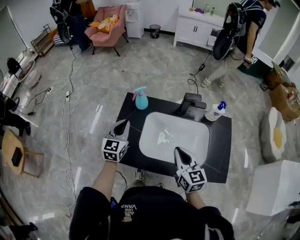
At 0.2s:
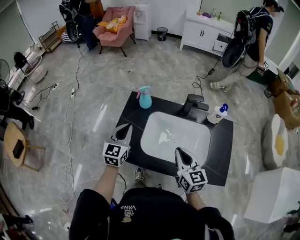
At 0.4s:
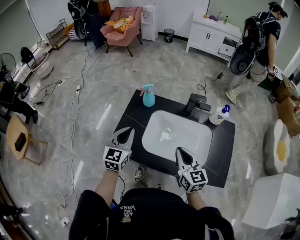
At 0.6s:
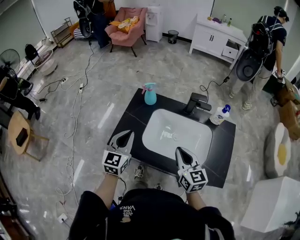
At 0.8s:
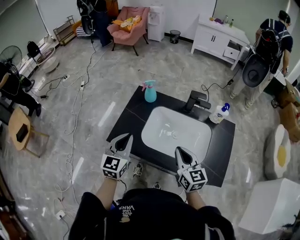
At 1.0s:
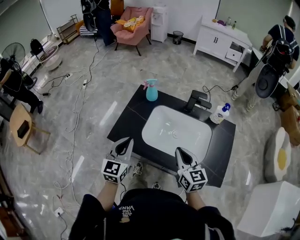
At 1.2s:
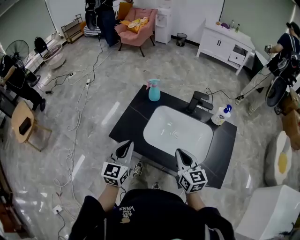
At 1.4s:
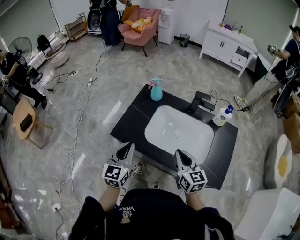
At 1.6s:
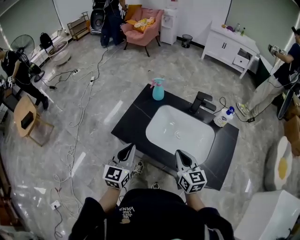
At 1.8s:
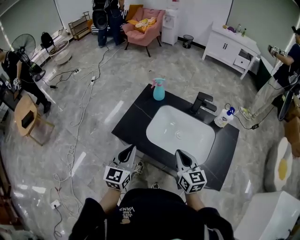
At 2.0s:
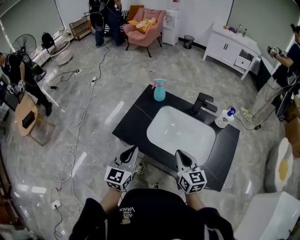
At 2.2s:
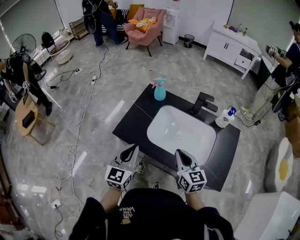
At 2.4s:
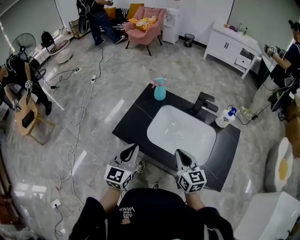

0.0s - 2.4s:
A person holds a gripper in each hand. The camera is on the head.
0.0s - 1.2s: The left gripper goes about 20 cm backward. The right gripper heads backward, covering some 5 cm.
1.2s - 2.4s: The grippers make only small movements.

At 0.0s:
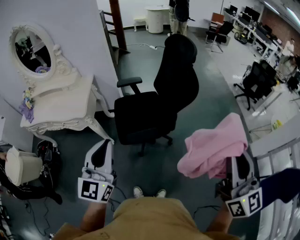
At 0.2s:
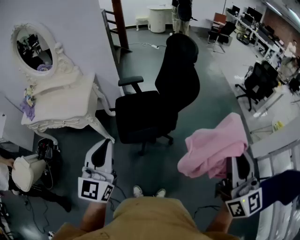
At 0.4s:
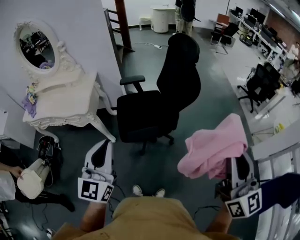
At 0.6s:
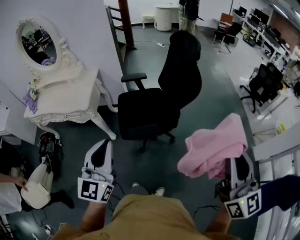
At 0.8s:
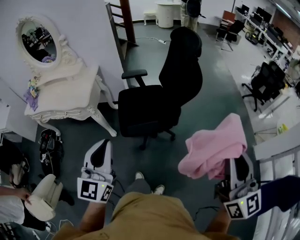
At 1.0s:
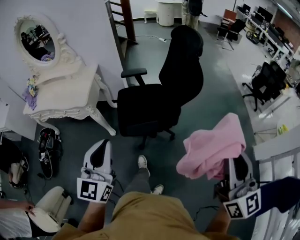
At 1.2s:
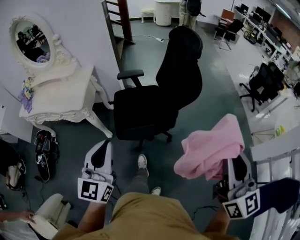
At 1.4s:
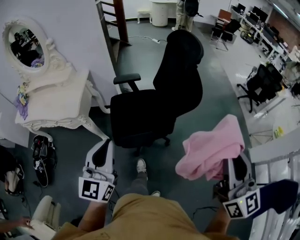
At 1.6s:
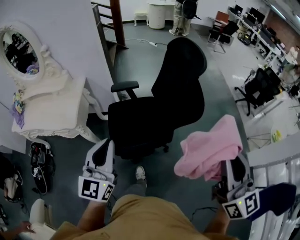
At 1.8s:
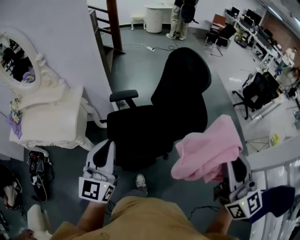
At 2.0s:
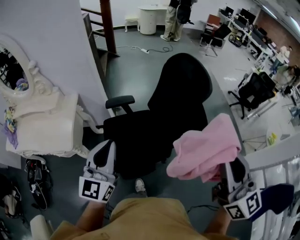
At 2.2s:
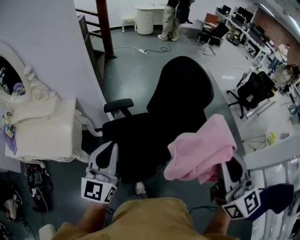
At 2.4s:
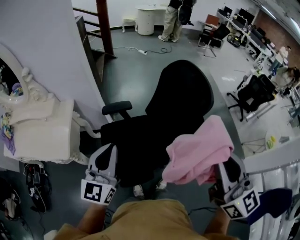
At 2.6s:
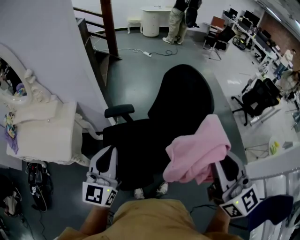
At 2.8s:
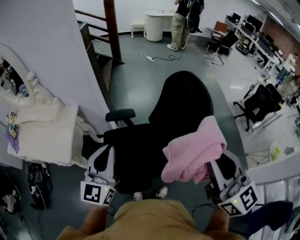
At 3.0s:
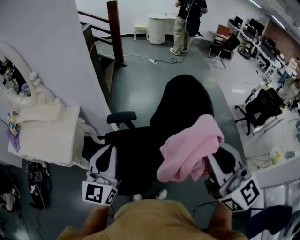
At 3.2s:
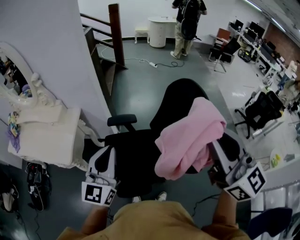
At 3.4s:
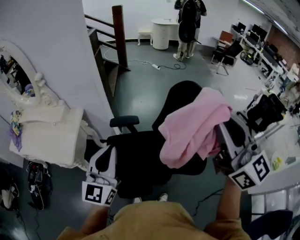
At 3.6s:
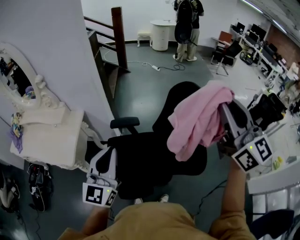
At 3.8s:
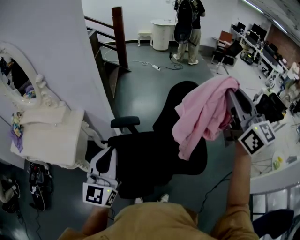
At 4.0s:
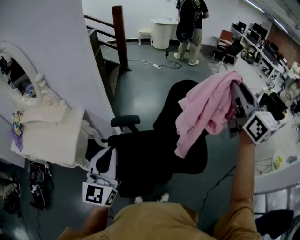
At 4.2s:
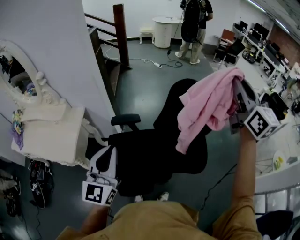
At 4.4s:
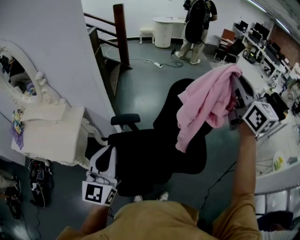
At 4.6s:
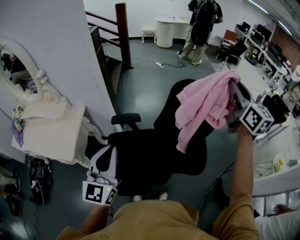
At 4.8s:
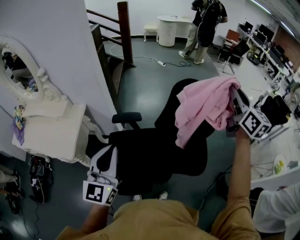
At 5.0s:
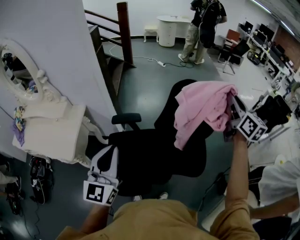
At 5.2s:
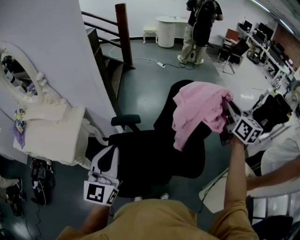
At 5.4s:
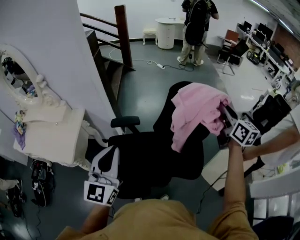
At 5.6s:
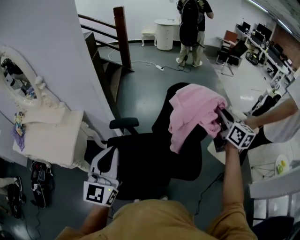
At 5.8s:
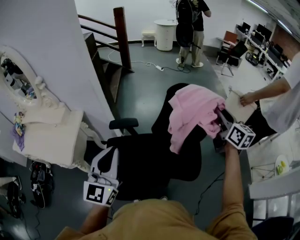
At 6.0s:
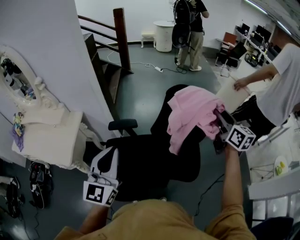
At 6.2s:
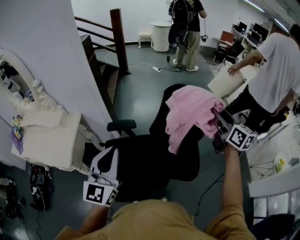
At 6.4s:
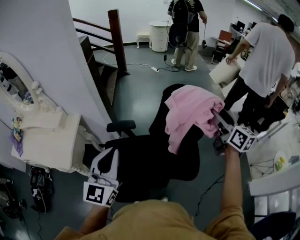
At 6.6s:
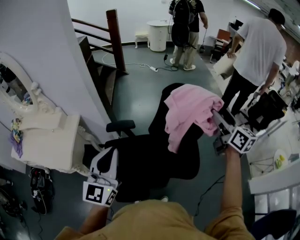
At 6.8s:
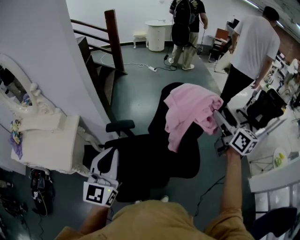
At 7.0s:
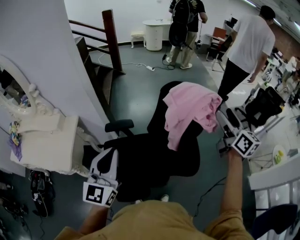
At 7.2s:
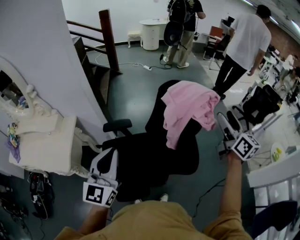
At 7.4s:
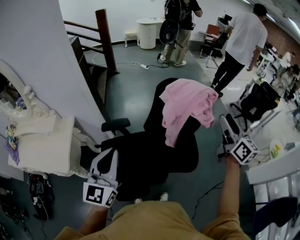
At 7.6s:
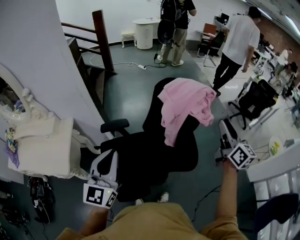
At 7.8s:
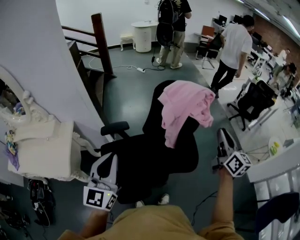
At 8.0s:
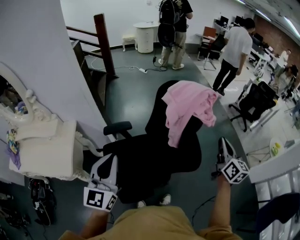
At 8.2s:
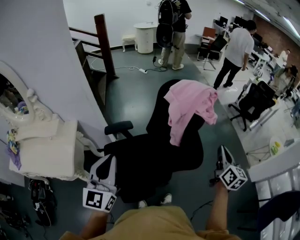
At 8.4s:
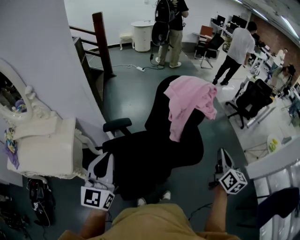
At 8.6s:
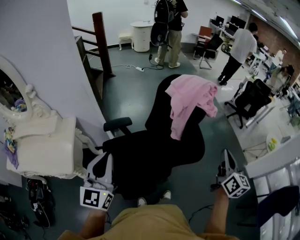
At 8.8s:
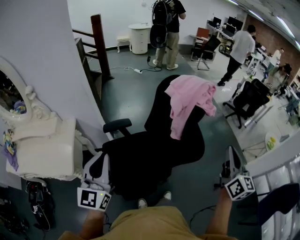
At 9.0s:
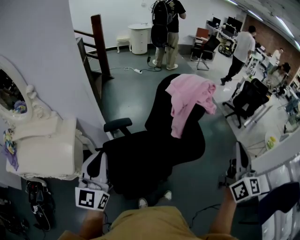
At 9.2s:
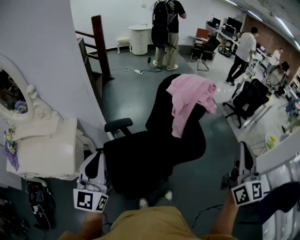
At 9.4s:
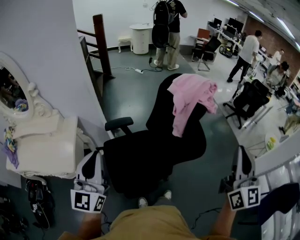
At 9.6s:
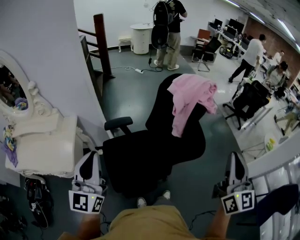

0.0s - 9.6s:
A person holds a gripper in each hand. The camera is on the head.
0.0s - 1.6s: The grippers both shift forward by some 20 cm.
1.6s - 3.2s: The grippers both shift forward by approximately 25 cm. The right gripper turns by some 20 degrees.
3.2s - 4.8s: The right gripper is displaced forward and to the right by about 25 cm, and changes its angle by roughly 20 degrees.
4.8s - 6.4s: The left gripper goes roughly 5 cm to the right; the right gripper shifts some 10 cm downward, and opens its fingers.
6.4s - 8.0s: The right gripper is displaced backward and downward by approximately 20 cm, swivels approximately 20 degrees, and closes up; the left gripper shifts by approximately 5 cm.
8.0s - 9.6s: The left gripper shifts some 15 cm to the left and backward, while the right gripper moves backward, upward and to the left, roughly 25 cm, and changes its angle by some 30 degrees.

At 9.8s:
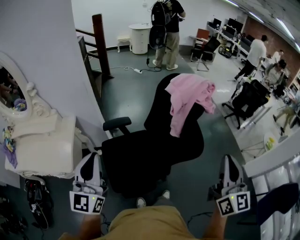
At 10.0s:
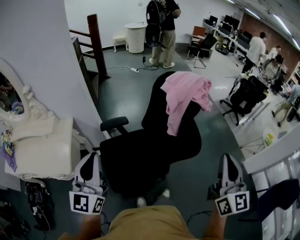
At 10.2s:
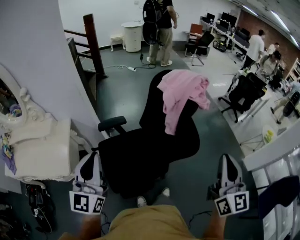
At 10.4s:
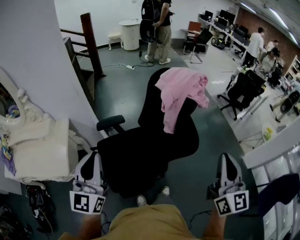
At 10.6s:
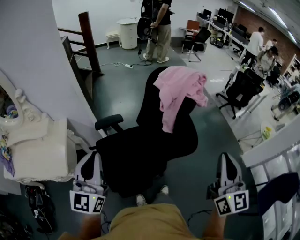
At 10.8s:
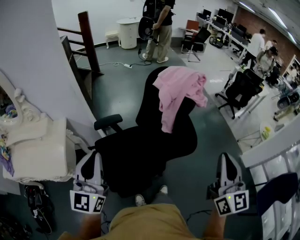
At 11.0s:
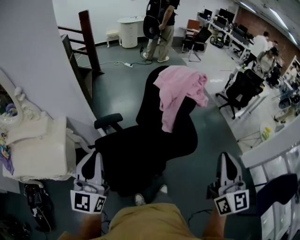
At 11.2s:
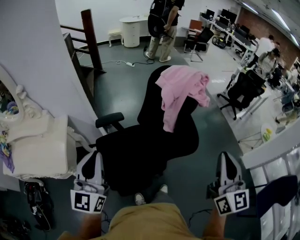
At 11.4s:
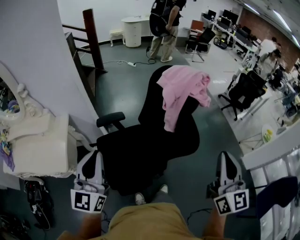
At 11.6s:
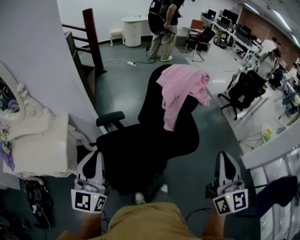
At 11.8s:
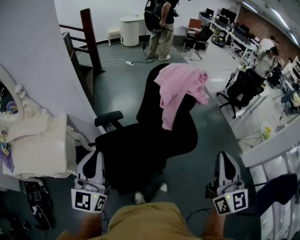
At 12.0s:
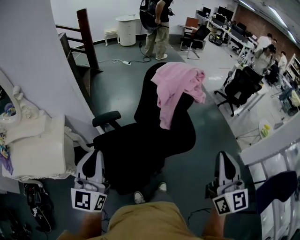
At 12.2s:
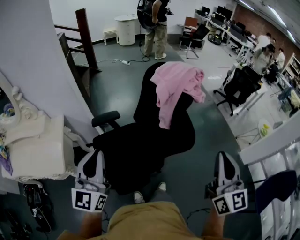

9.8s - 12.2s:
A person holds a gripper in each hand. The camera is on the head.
9.8s - 11.0s: The left gripper is displaced to the right by about 5 cm.
11.0s - 12.2s: The grippers make only small movements.

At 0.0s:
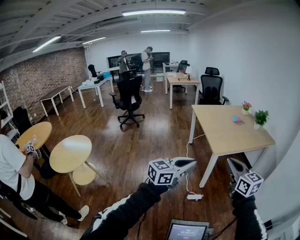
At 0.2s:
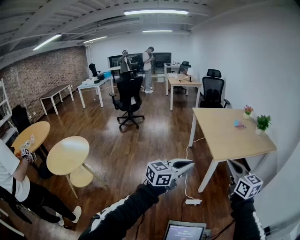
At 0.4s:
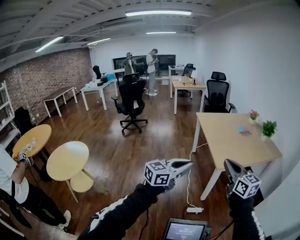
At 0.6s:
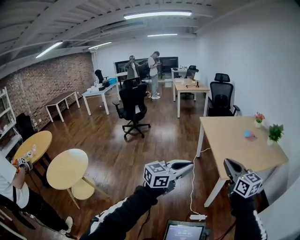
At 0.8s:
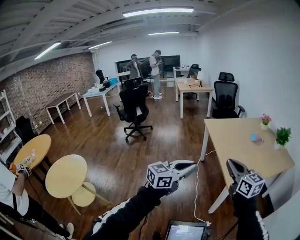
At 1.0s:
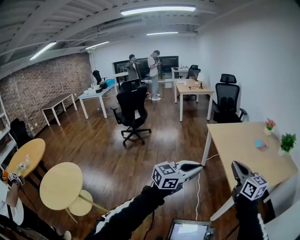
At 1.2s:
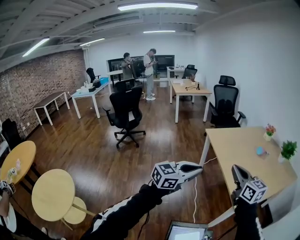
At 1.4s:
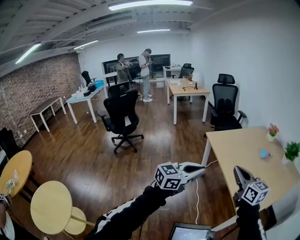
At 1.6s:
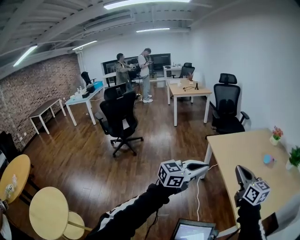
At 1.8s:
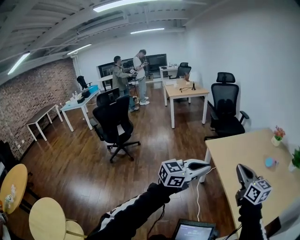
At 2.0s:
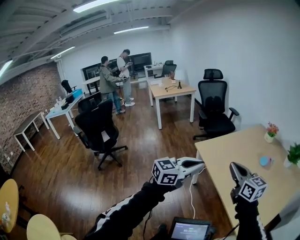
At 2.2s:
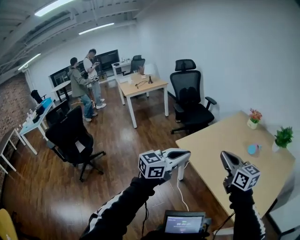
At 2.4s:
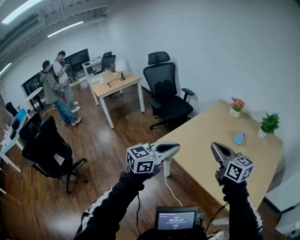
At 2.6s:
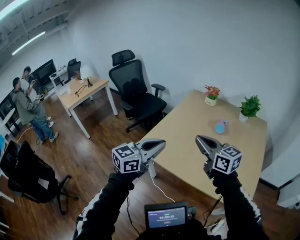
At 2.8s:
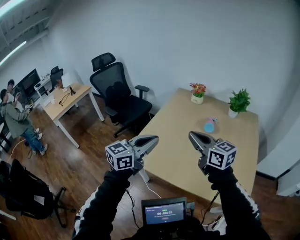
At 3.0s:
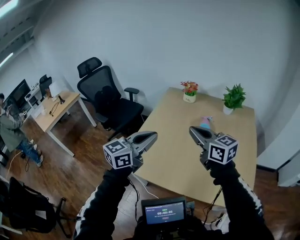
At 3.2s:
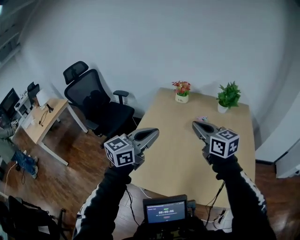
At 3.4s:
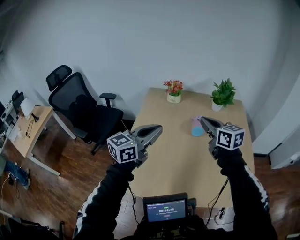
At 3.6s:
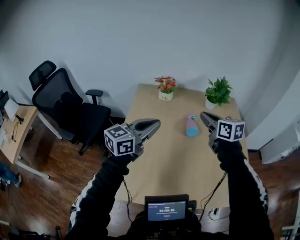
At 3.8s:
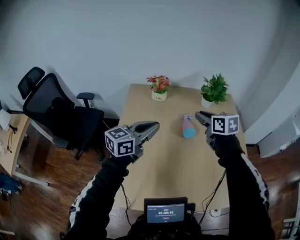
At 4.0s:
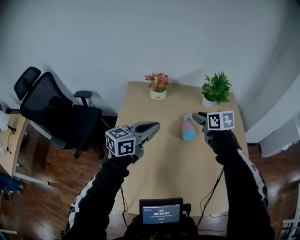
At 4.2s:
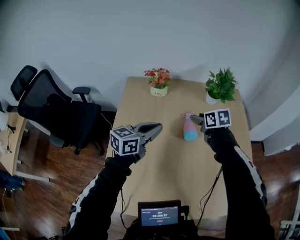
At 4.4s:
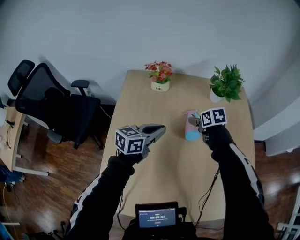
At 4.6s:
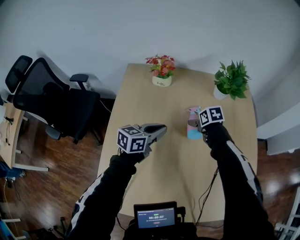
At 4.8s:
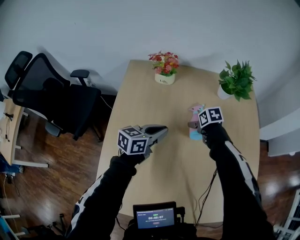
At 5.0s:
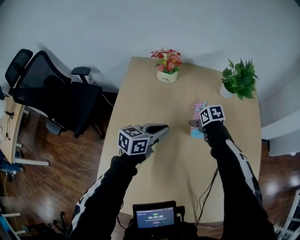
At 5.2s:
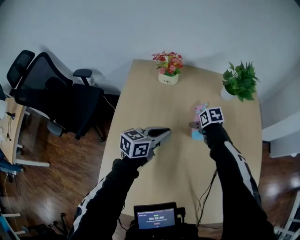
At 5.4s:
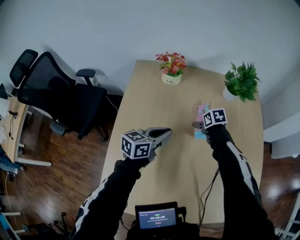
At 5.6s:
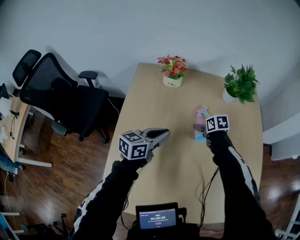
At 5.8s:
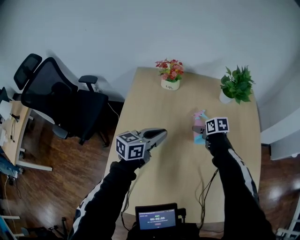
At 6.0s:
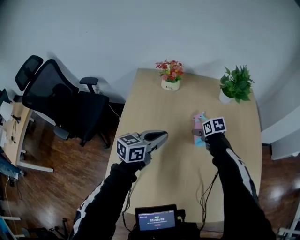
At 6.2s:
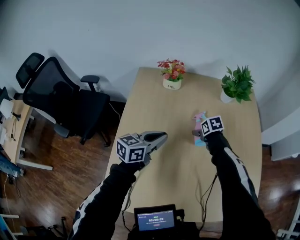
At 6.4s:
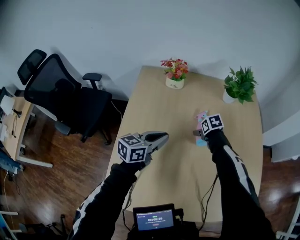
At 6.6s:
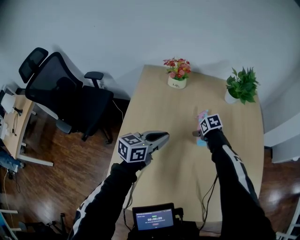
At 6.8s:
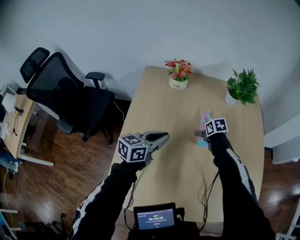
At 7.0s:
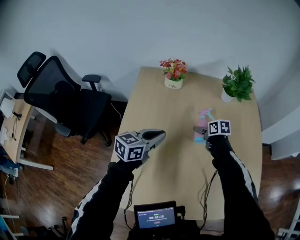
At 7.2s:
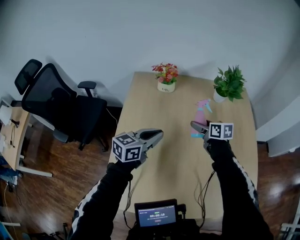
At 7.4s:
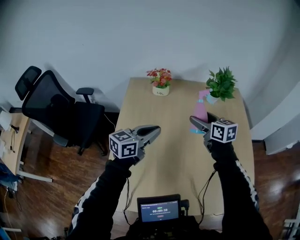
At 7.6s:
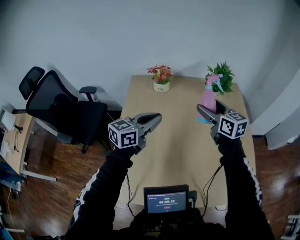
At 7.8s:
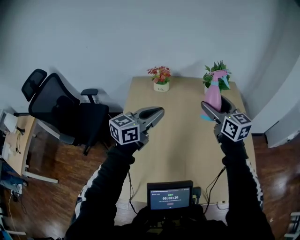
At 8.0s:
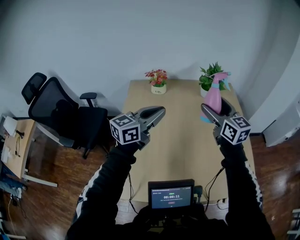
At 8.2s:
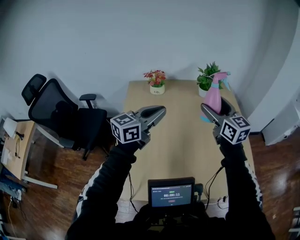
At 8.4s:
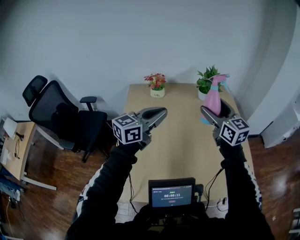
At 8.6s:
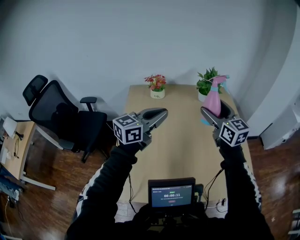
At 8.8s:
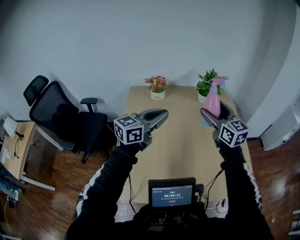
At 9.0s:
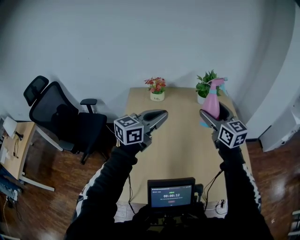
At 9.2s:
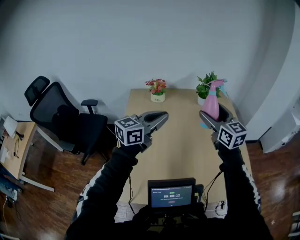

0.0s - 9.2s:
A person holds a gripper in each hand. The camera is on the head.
0.0s - 1.6s: The pair of grippers is taken forward and to the left, roughly 1 m.
1.6s - 3.0s: Both grippers are carried some 80 cm. The left gripper turns by about 40 degrees, while the right gripper swivels roughly 40 degrees.
3.0s - 4.6s: The two grippers travel together, forward, about 60 cm. Both grippers move downward, roughly 35 cm. The right gripper points its fingers some 60 degrees further downward, and opens up, while the left gripper swivels roughly 30 degrees.
4.6s - 6.2s: Both grippers move backward, about 10 cm.
6.2s - 7.6s: The right gripper is displaced upward by about 35 cm, and angles its fingers upward, by some 50 degrees. Meanwhile the left gripper moves upward and backward, approximately 15 cm.
7.6s - 9.2s: The two grippers go about 15 cm backward, upward and to the right.
